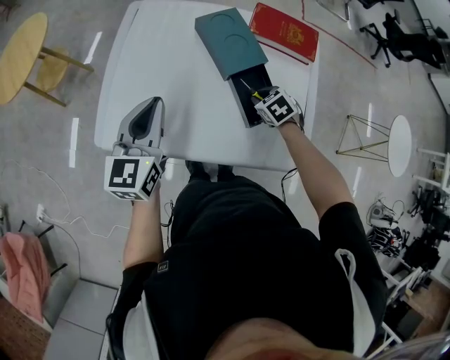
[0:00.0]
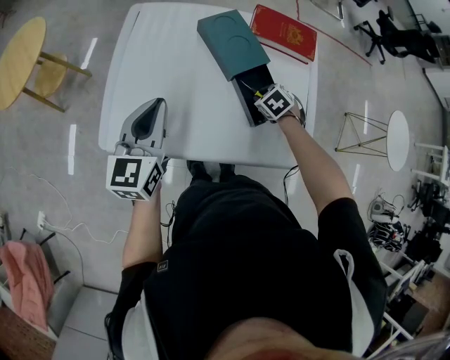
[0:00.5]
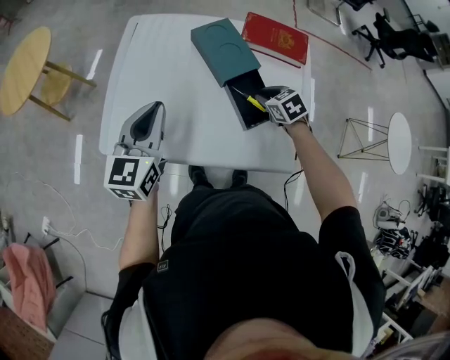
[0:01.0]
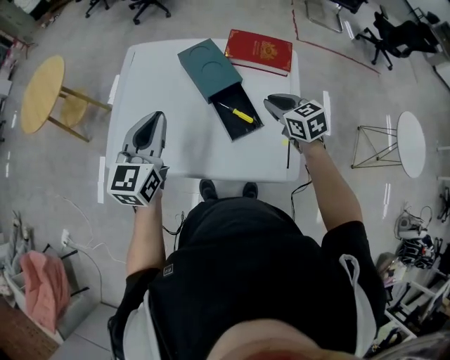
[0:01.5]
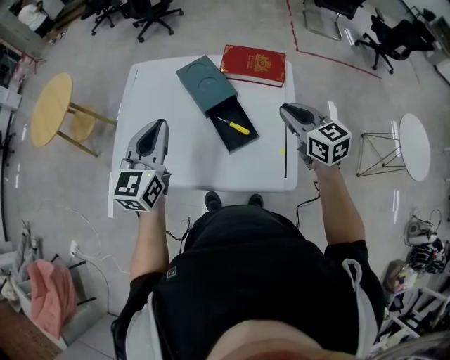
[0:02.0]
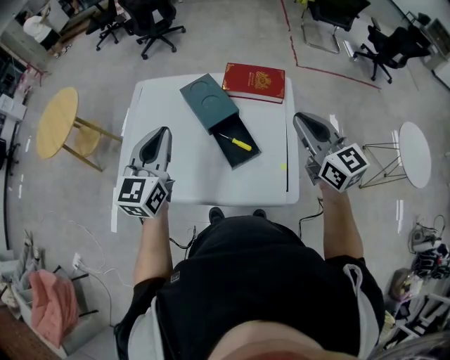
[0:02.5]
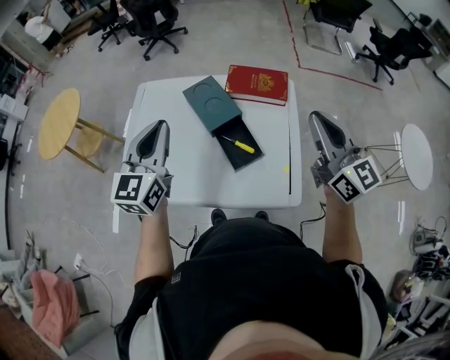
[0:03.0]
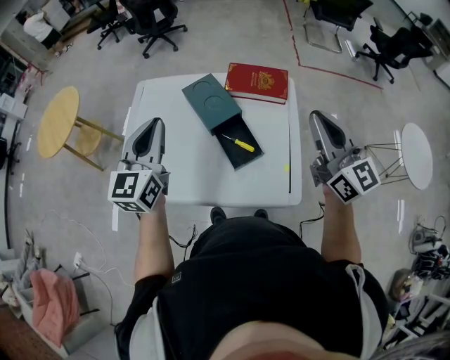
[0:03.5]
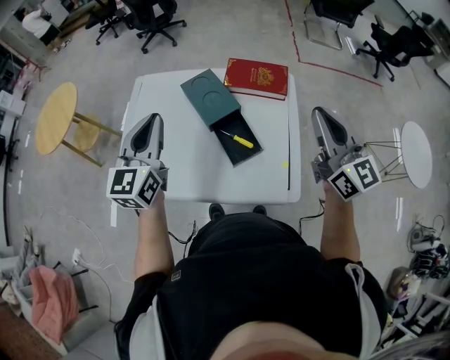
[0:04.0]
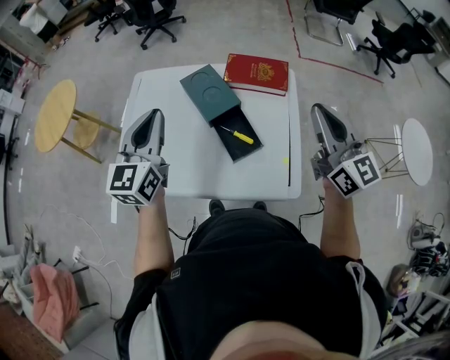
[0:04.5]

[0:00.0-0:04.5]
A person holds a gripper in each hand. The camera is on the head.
0:00.0 to 0:02.0: The left gripper moves about 15 cm. The right gripper heads upward, covering roughly 25 cm, and angles its fingers upward, by roughly 50 degrees.
0:02.0 to 0:04.5: The left gripper changes place by approximately 5 cm; the right gripper heads upward, covering roughly 15 cm, and turns by approximately 30 degrees.

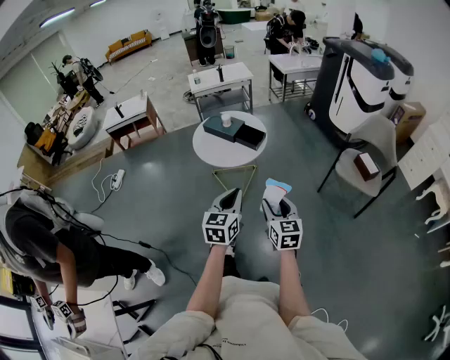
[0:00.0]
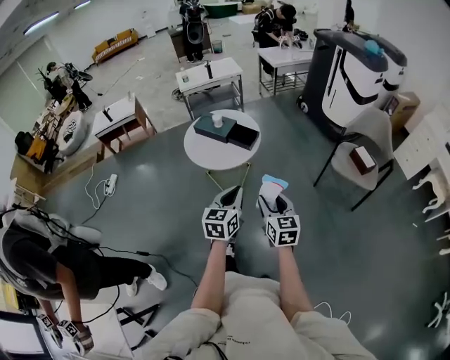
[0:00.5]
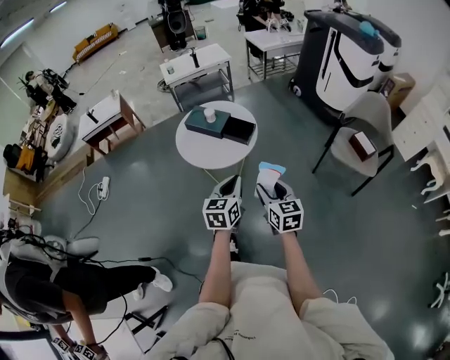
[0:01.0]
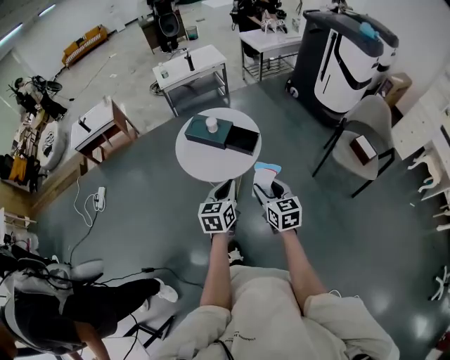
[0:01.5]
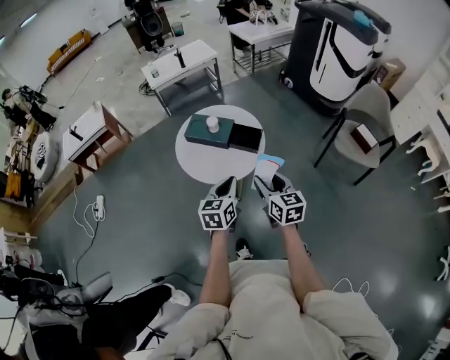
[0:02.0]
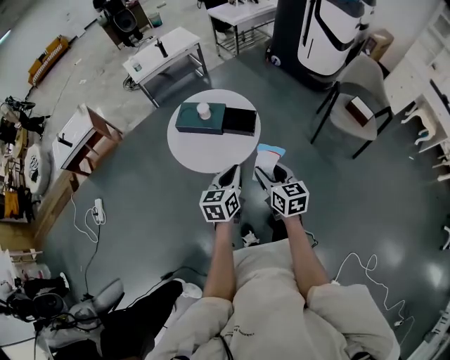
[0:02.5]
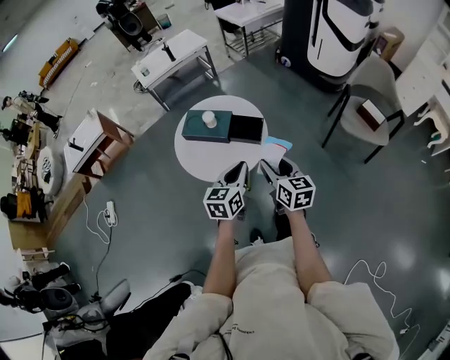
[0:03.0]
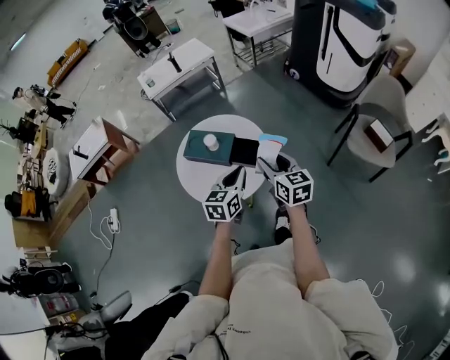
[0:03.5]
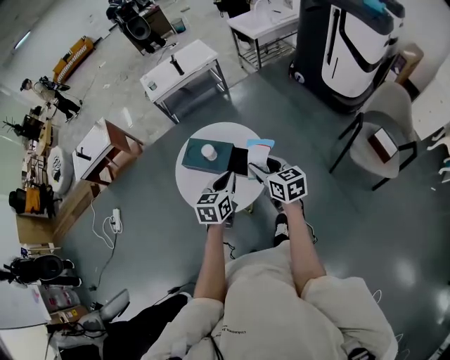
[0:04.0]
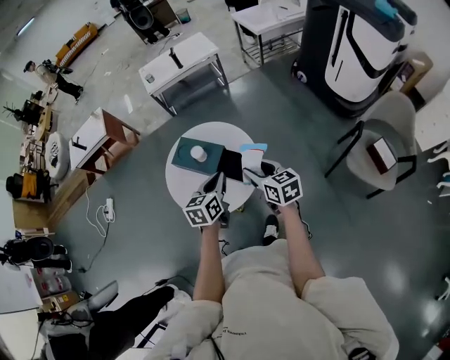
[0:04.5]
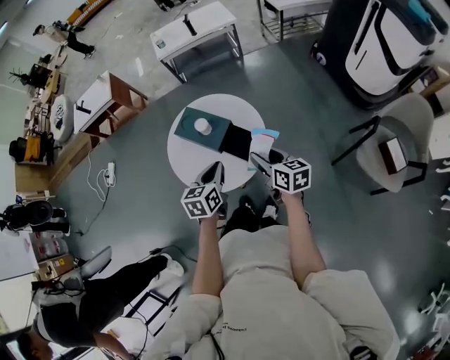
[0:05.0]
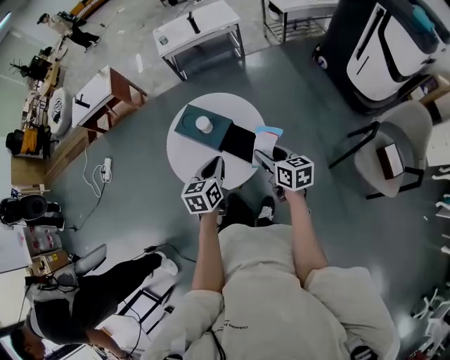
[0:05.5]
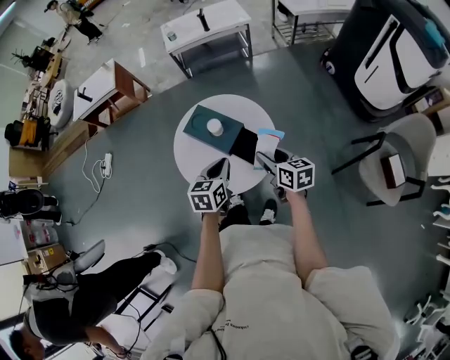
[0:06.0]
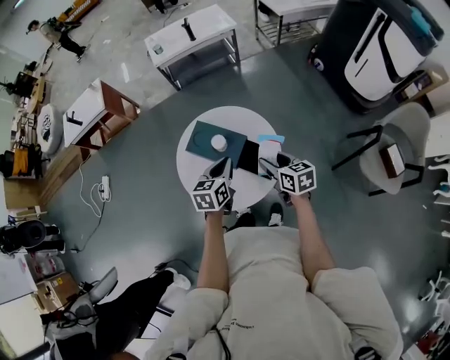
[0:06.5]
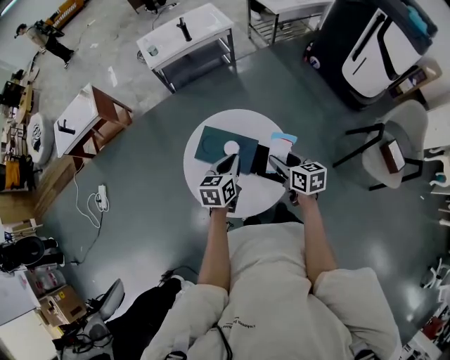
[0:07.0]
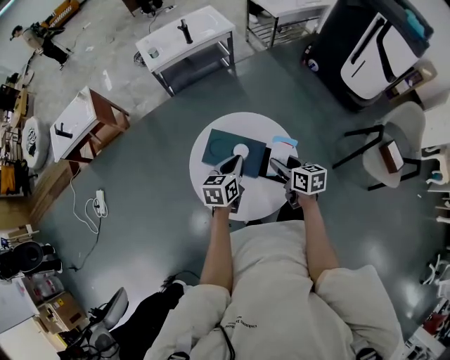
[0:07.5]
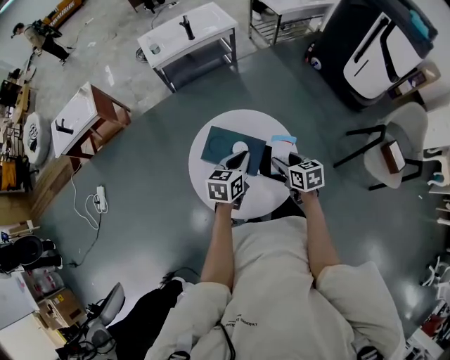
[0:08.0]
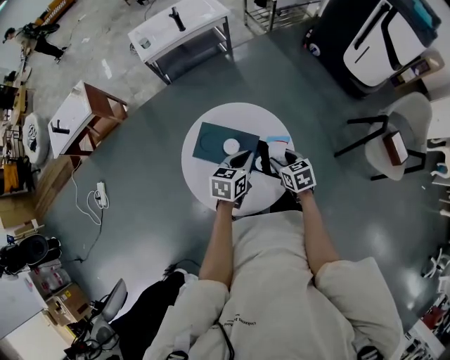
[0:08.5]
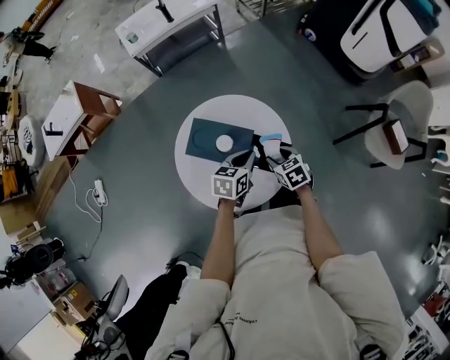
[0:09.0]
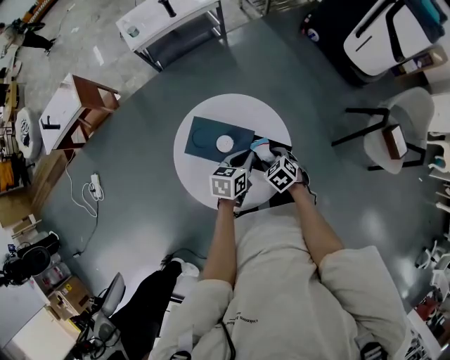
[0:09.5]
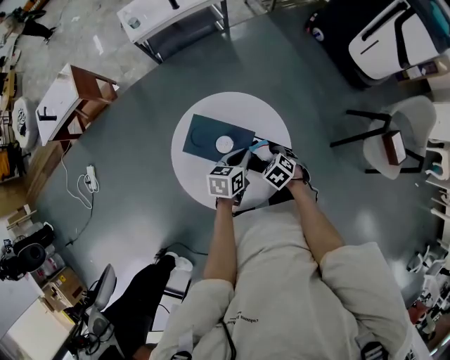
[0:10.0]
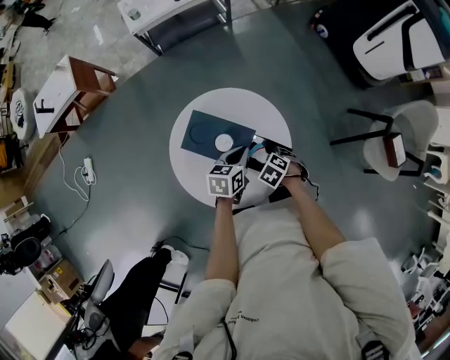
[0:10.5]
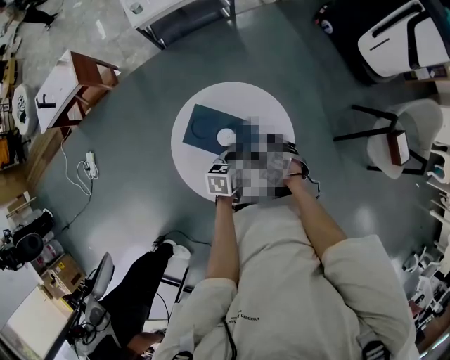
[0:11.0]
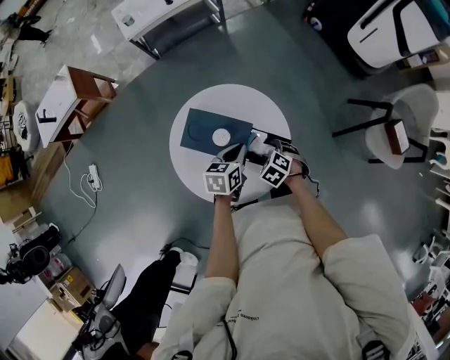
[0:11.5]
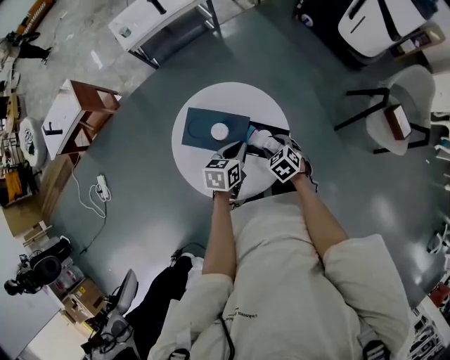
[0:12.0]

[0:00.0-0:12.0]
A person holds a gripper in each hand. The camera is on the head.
0:00.0 to 0:02.0: Both grippers travel together forward and to the left, some 35 cm.
0:02.0 to 0:04.0: Both grippers move forward, roughly 25 cm.
0:04.0 to 0:06.0: The right gripper shifts approximately 10 cm downward and forward, while the left gripper heads forward and downward, covering about 5 cm.
0:06.0 to 0:08.0: The right gripper is displaced to the left, forward and downward by roughly 15 cm, while the left gripper travels forward and to the left by roughly 15 cm, and swivels about 20 degrees.
0:08.0 to 0:10.0: The right gripper travels downward by some 15 cm, and points its fingers some 30 degrees further downward. The left gripper travels downward and to the right by roughly 10 cm.
0:10.0 to 0:12.0: The grippers stay close to where they were, moving slightly.

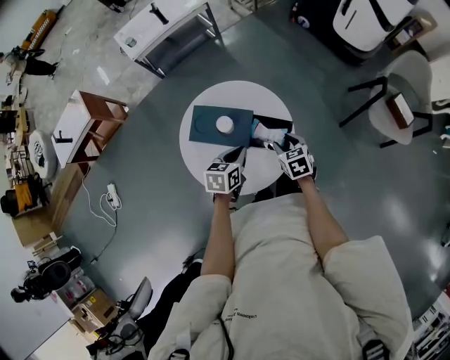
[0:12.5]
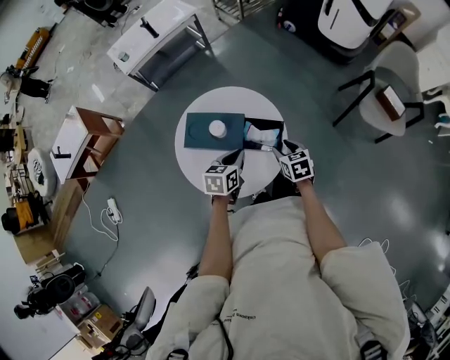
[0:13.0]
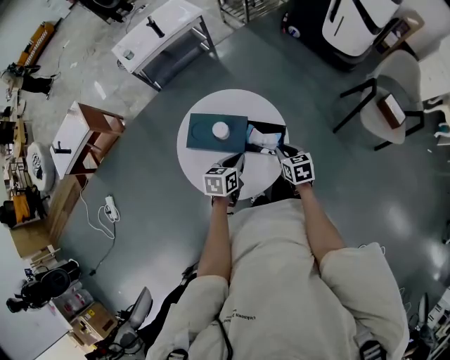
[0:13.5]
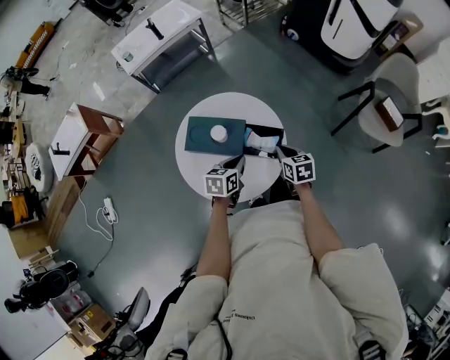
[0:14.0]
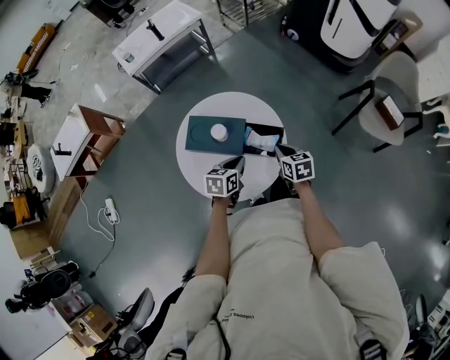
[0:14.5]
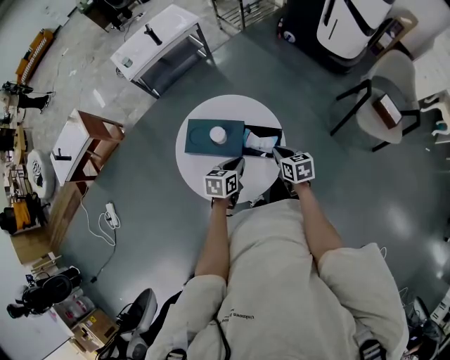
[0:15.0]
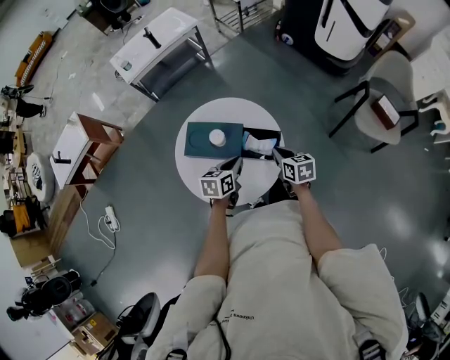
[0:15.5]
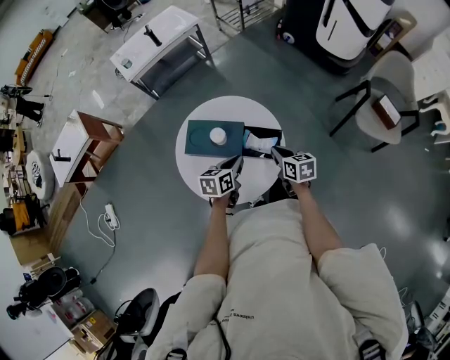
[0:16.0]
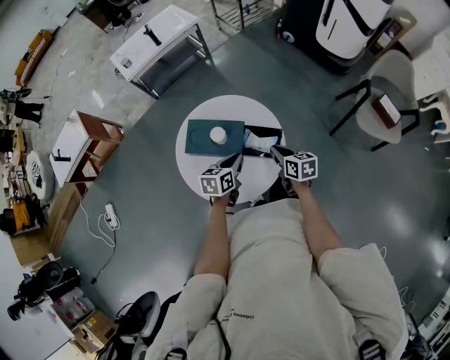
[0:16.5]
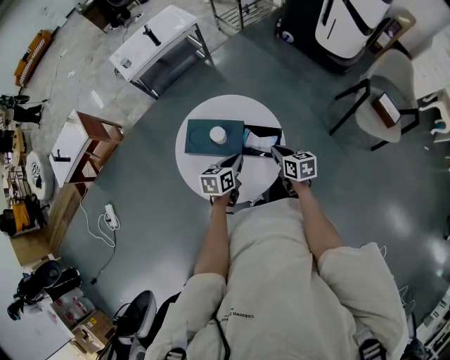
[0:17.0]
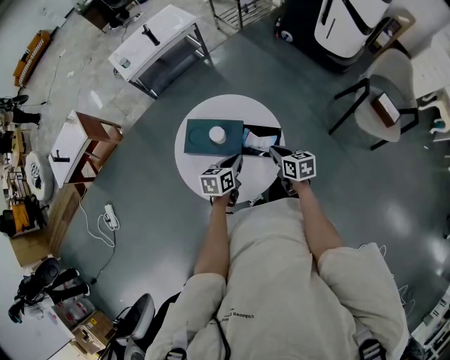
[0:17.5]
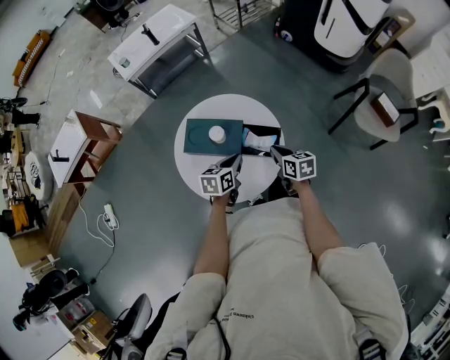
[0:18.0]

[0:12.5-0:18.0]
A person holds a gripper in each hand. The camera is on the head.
0:12.5 to 0:14.5: The right gripper closes its fingers.
0:14.5 to 0:16.0: The grippers make only small movements.
0:16.0 to 0:18.0: The two grippers keep their place.

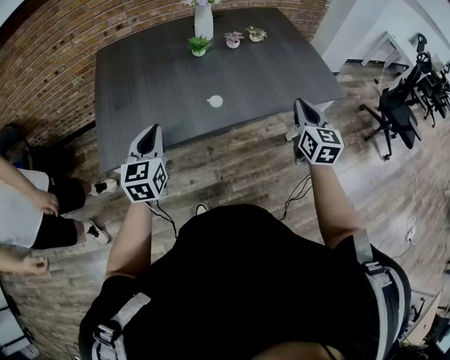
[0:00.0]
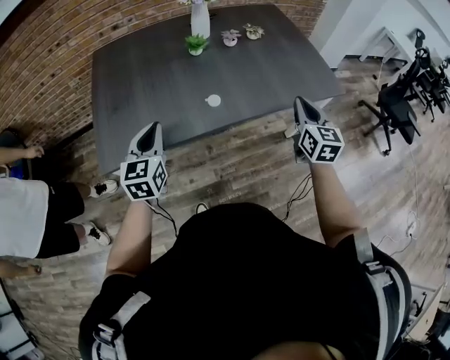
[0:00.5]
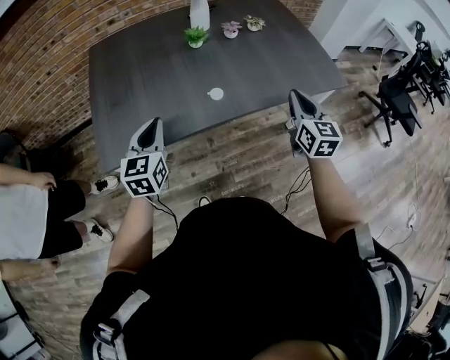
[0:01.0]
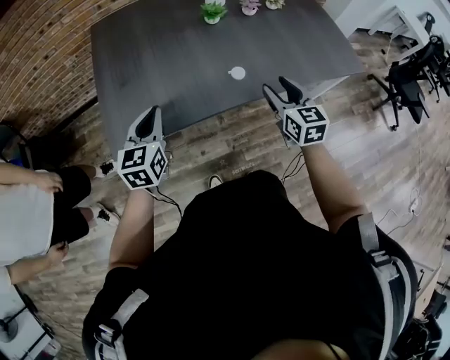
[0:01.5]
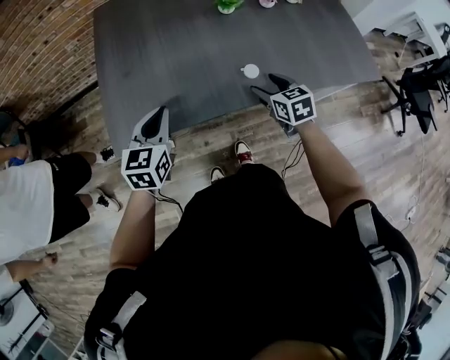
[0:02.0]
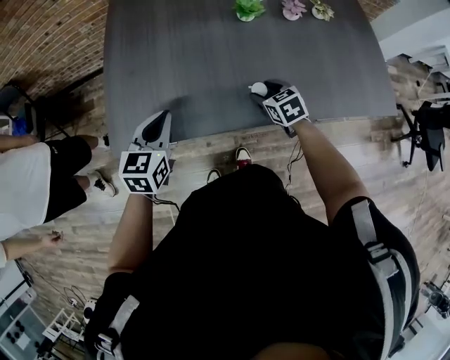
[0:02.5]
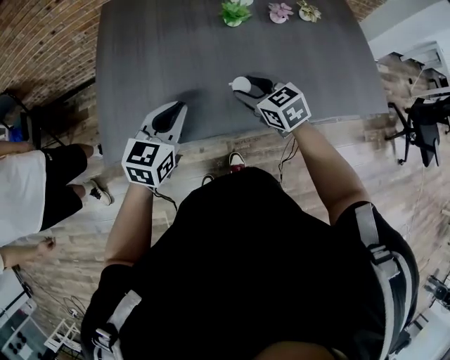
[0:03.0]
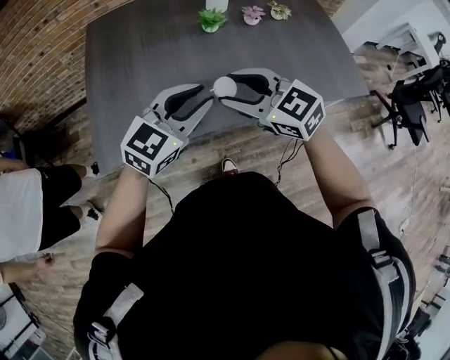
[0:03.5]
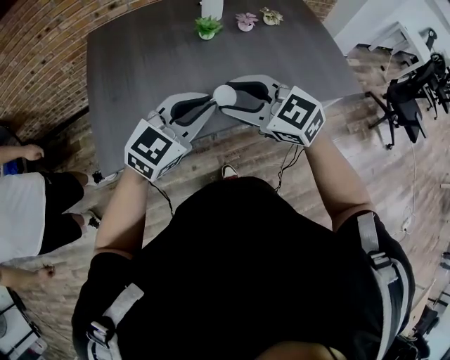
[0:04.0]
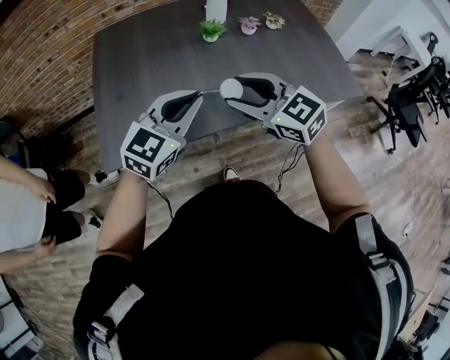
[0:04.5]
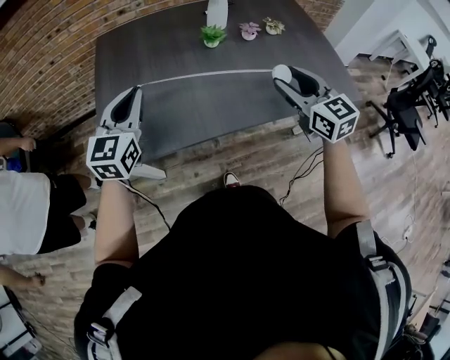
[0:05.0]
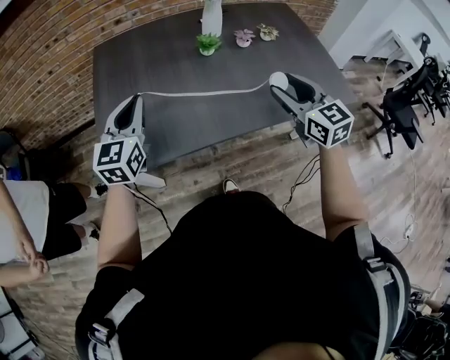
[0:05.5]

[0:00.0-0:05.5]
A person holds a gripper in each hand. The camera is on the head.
0:00.0 to 0:02.0: The left gripper goes some 10 cm to the left and downward. The right gripper is displaced to the left and downward by about 25 cm, changes its angle by roughly 40 degrees, and opens up.
0:02.0 to 0:03.5: The left gripper heads to the right and upward, covering some 20 cm, turns by approximately 40 degrees, and opens. Meanwhile the right gripper heads upward and to the left, covering roughly 20 cm, and turns by roughly 40 degrees.
0:03.5 to 0:05.5: The right gripper heads to the right, covering about 15 cm, and rotates approximately 30 degrees; the left gripper is displaced to the left by about 15 cm, swivels some 40 degrees, and closes its fingers.
